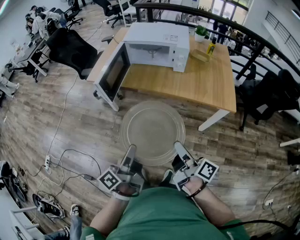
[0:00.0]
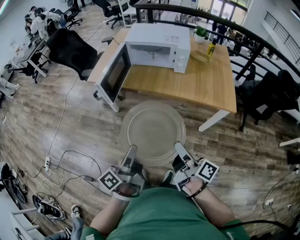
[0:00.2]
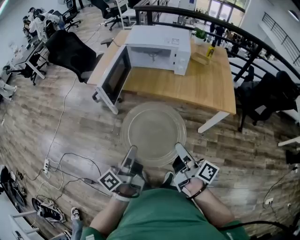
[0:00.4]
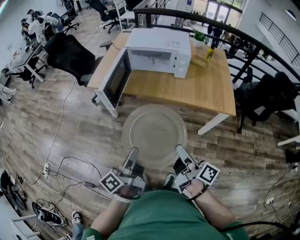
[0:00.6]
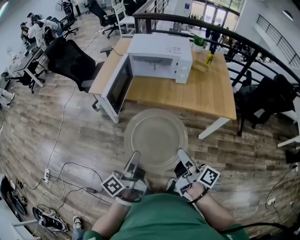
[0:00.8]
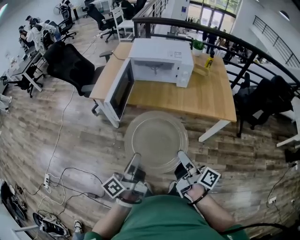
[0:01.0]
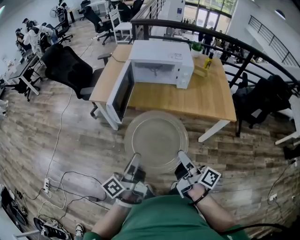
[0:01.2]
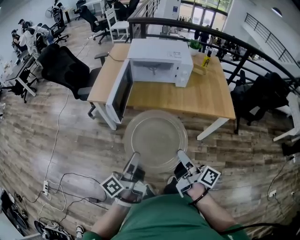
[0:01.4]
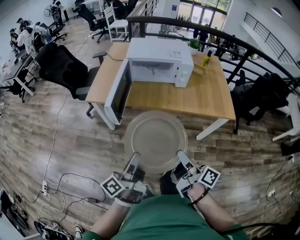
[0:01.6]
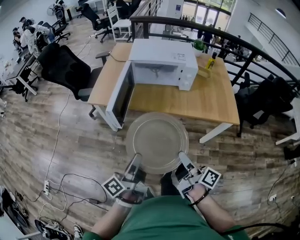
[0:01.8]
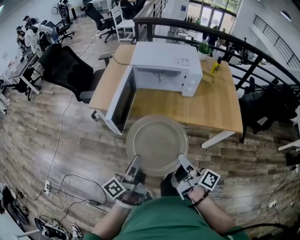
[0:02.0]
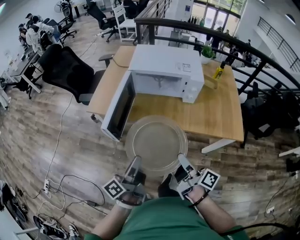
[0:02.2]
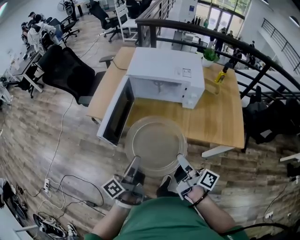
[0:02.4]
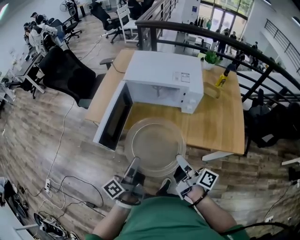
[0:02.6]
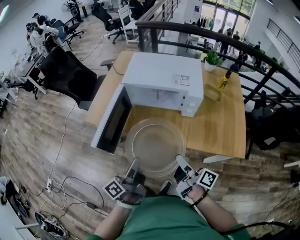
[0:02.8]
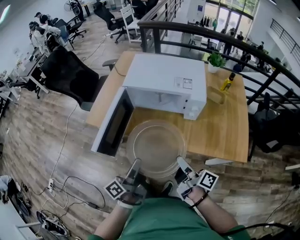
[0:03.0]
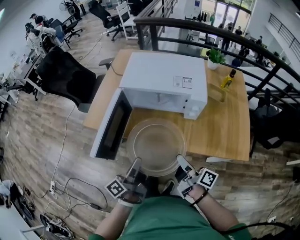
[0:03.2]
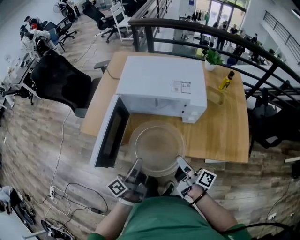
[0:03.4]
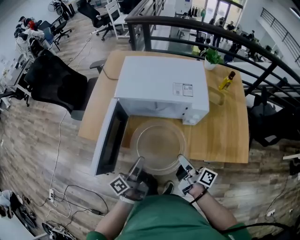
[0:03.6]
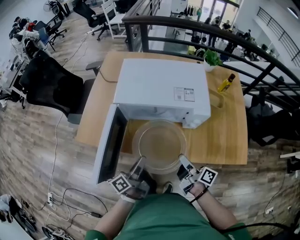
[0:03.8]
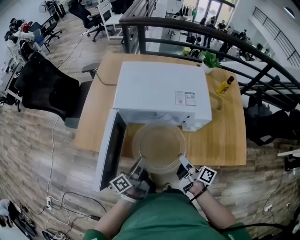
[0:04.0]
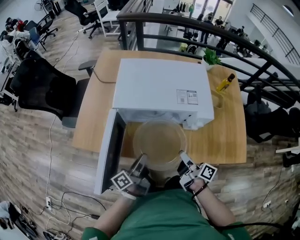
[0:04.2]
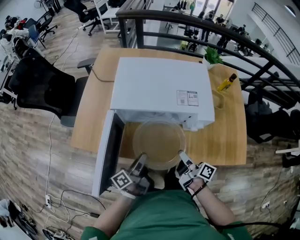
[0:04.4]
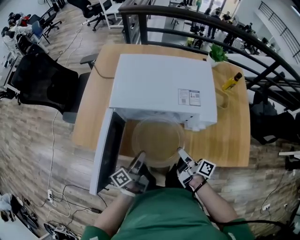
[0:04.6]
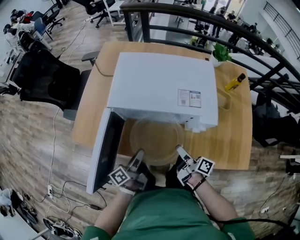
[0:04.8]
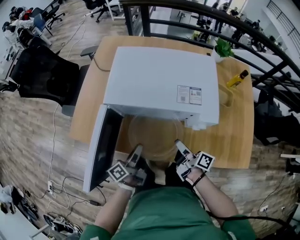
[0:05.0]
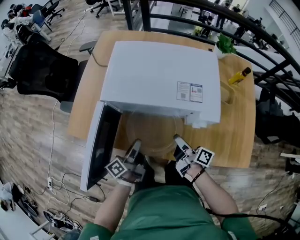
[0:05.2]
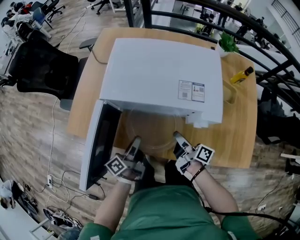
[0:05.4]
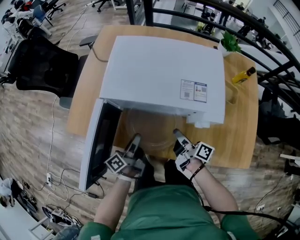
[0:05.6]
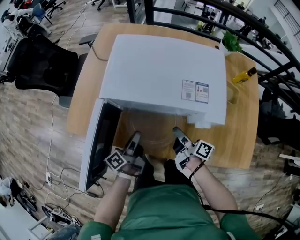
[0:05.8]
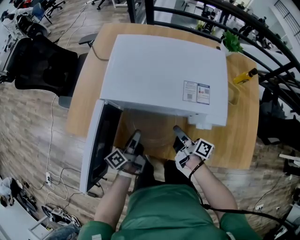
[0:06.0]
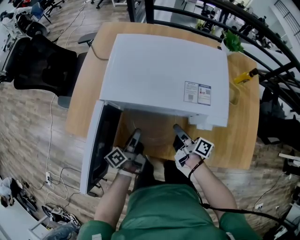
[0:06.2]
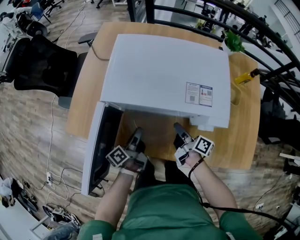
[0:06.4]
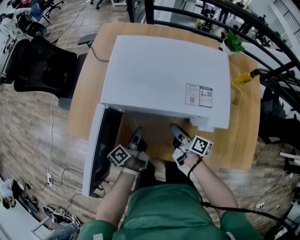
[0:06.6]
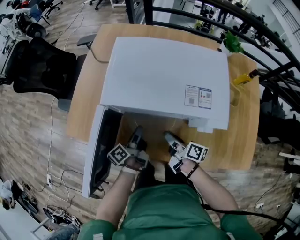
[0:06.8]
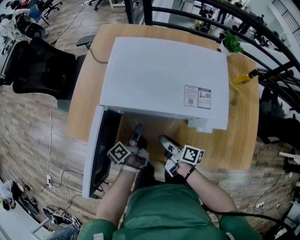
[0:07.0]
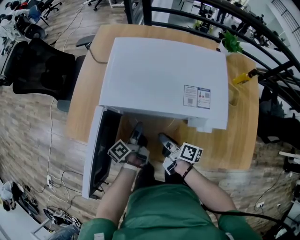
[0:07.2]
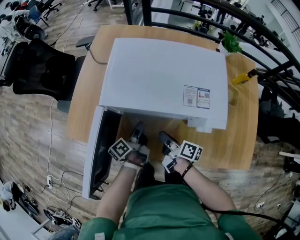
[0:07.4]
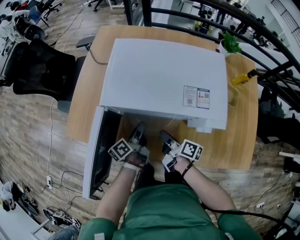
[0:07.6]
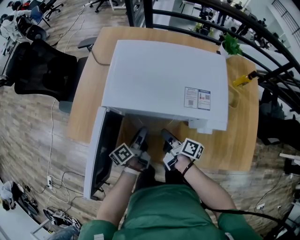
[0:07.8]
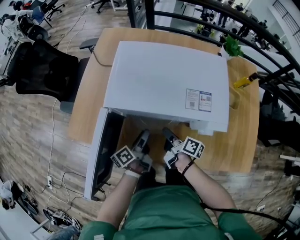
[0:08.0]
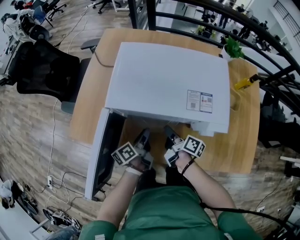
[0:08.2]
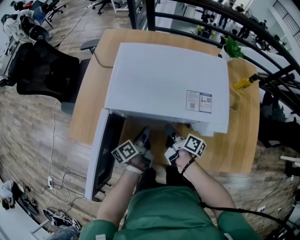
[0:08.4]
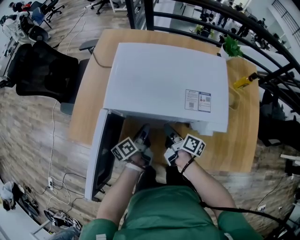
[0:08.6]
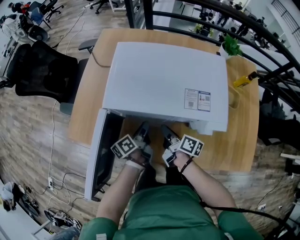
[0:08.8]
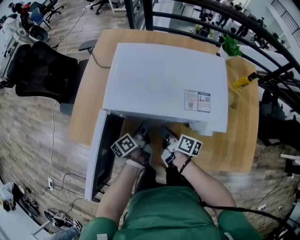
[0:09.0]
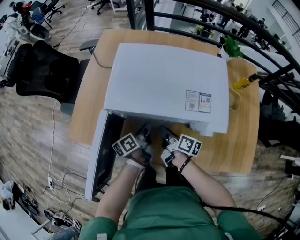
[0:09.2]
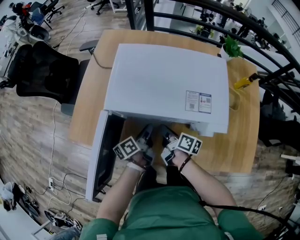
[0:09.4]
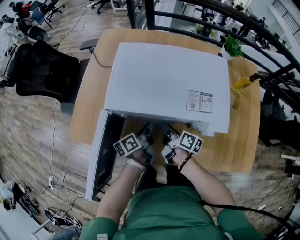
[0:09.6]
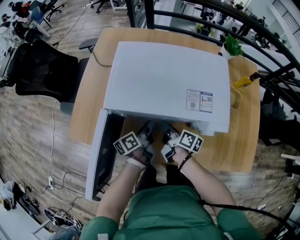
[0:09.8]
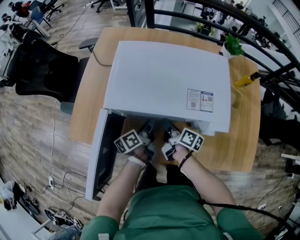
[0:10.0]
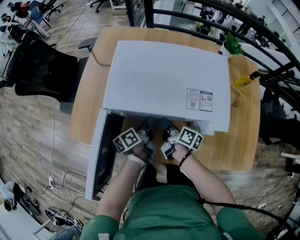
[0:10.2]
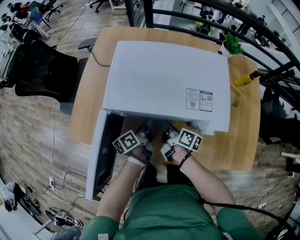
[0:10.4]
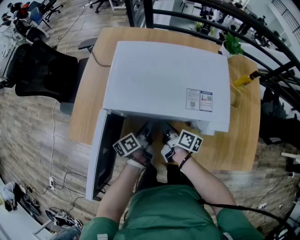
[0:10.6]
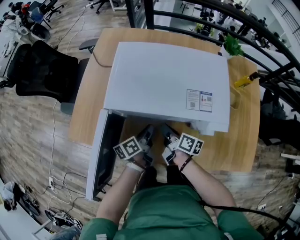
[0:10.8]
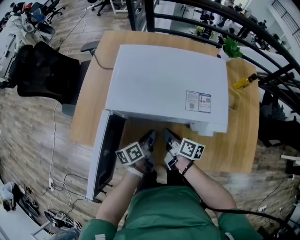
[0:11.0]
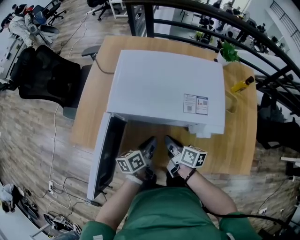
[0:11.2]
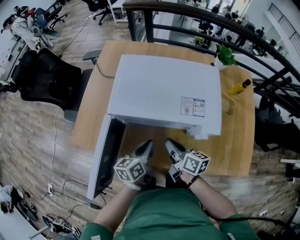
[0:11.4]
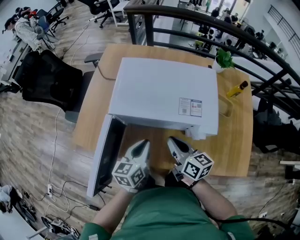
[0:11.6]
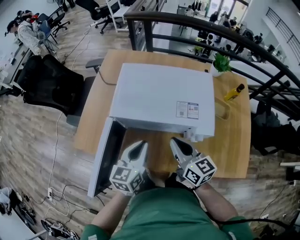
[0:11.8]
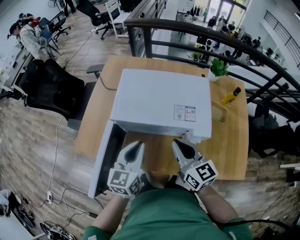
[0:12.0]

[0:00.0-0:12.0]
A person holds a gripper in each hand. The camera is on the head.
0:00.0 to 0:01.6: The right gripper shifts roughly 10 cm to the left. Meanwhile the left gripper travels to the left and forward by about 15 cm.
0:01.6 to 0:03.0: The right gripper goes roughly 25 cm forward. Meanwhile the left gripper travels forward and to the right by about 25 cm.
0:03.0 to 0:04.4: Both grippers move forward and downward, roughly 20 cm.
0:04.4 to 0:06.0: The two grippers go roughly 10 cm forward and downward.
0:06.0 to 0:07.6: The left gripper moves forward, some 5 cm, while the right gripper is displaced to the left by some 5 cm, and opens, then closes once more.
0:07.6 to 0:09.0: The grippers move only a little.
0:09.0 to 0:10.4: The grippers stay close to where they were, moving slightly.
0:10.4 to 0:12.0: Both grippers travel together upward, approximately 25 cm. The right gripper rotates around the line of its fingers by roughly 60 degrees, counterclockwise from behind. Meanwhile the left gripper rolls clockwise, seen from behind, by about 60 degrees.

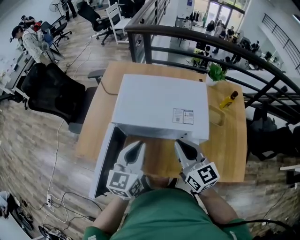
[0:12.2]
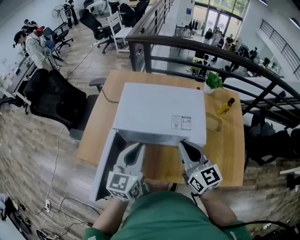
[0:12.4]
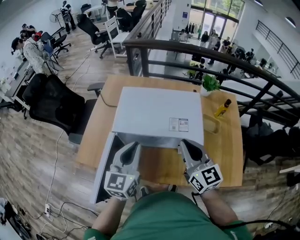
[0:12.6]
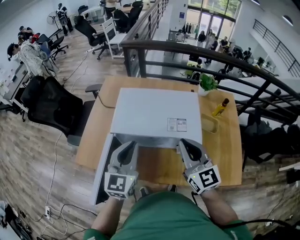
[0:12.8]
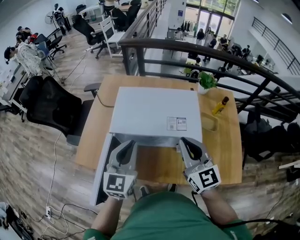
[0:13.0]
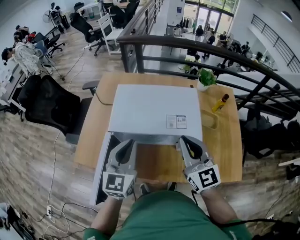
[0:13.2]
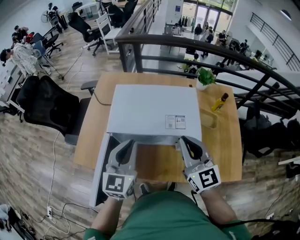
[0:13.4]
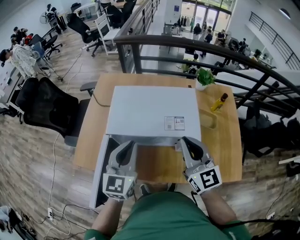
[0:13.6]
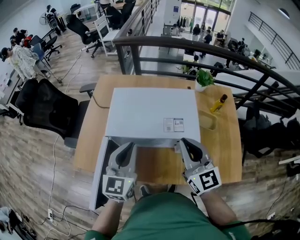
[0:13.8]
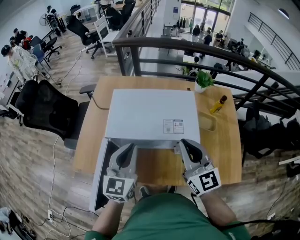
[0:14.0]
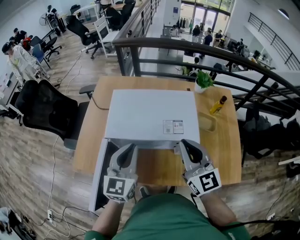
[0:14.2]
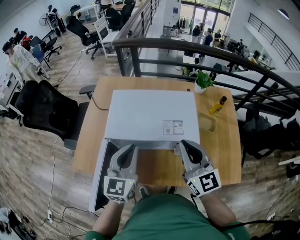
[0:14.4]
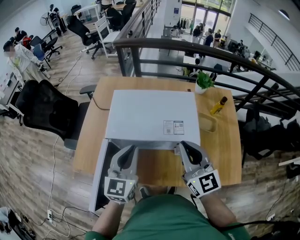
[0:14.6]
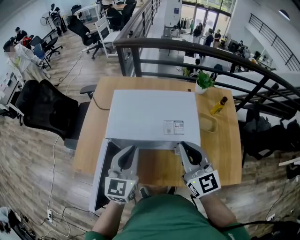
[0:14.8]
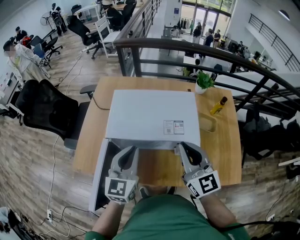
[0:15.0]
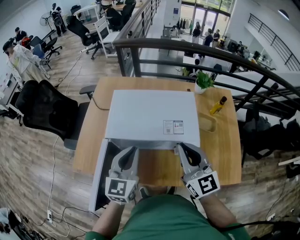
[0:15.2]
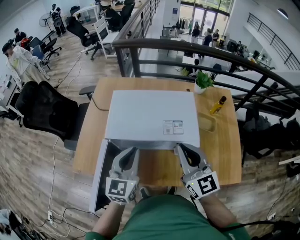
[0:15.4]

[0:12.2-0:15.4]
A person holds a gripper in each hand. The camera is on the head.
0:12.2 to 0:13.8: The right gripper goes roughly 5 cm upward.
0:13.8 to 0:15.4: There are only small adjustments of the grippers.

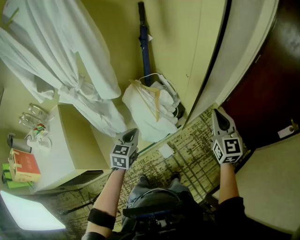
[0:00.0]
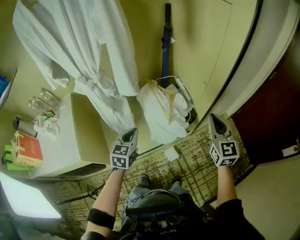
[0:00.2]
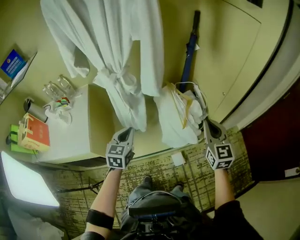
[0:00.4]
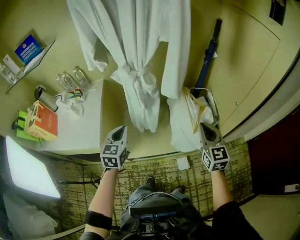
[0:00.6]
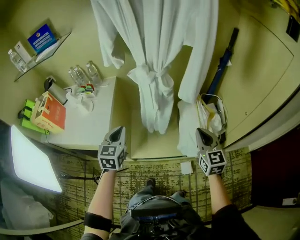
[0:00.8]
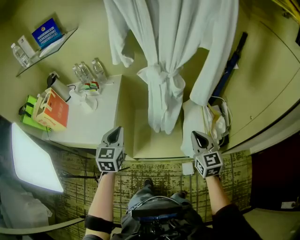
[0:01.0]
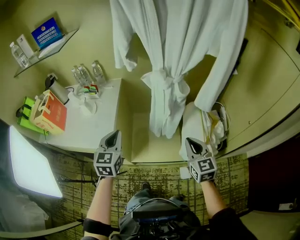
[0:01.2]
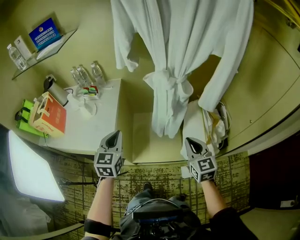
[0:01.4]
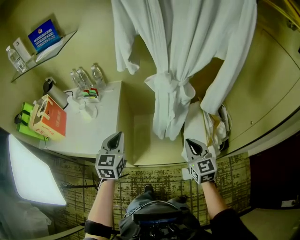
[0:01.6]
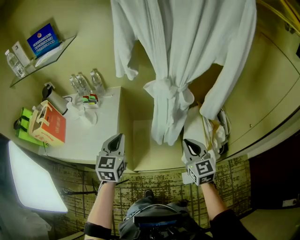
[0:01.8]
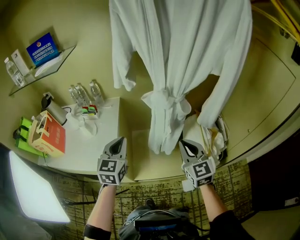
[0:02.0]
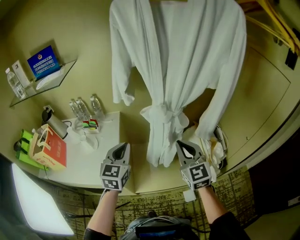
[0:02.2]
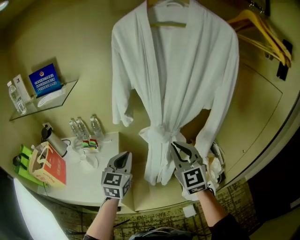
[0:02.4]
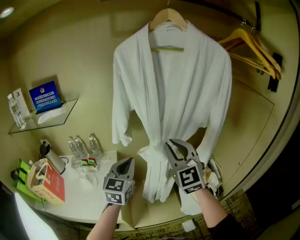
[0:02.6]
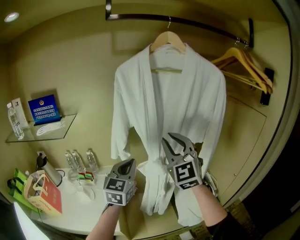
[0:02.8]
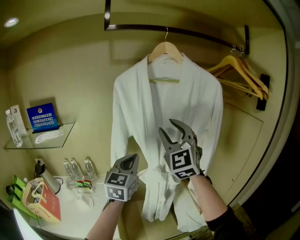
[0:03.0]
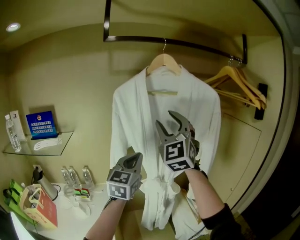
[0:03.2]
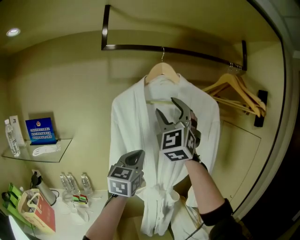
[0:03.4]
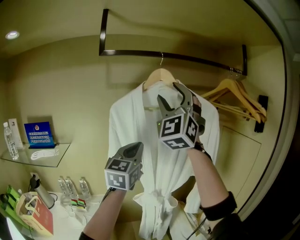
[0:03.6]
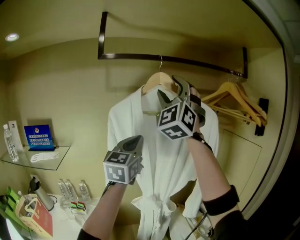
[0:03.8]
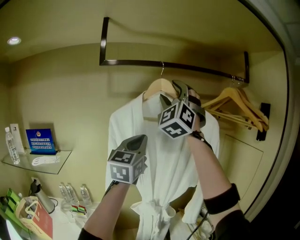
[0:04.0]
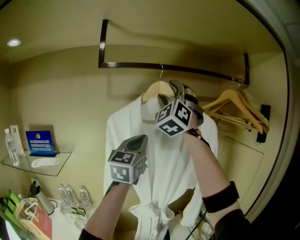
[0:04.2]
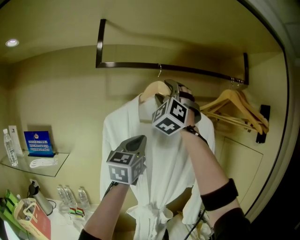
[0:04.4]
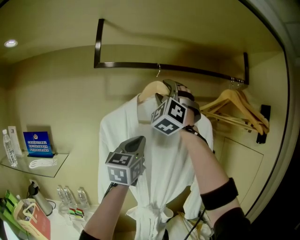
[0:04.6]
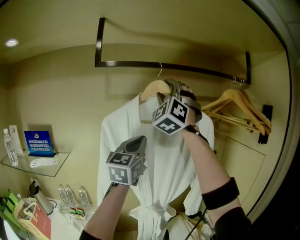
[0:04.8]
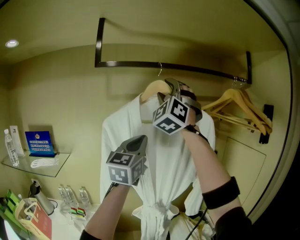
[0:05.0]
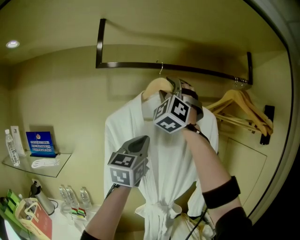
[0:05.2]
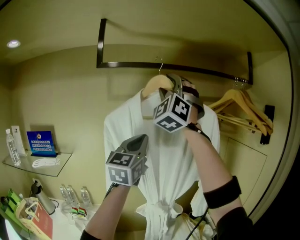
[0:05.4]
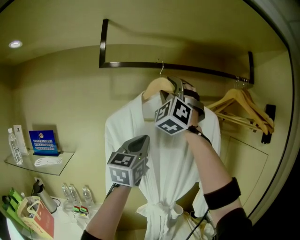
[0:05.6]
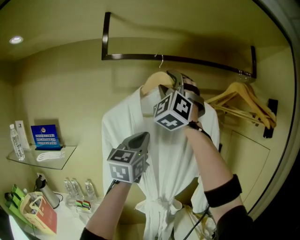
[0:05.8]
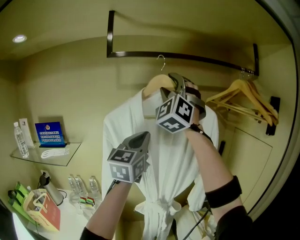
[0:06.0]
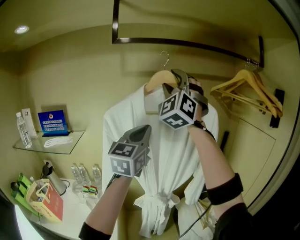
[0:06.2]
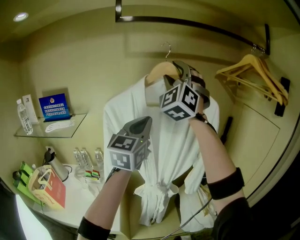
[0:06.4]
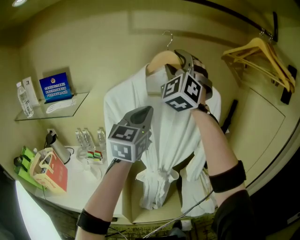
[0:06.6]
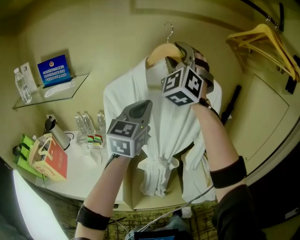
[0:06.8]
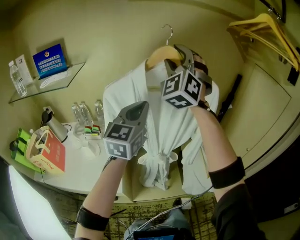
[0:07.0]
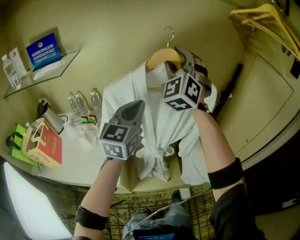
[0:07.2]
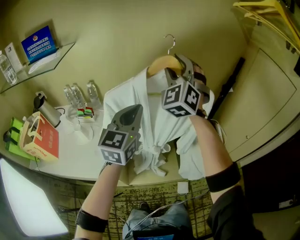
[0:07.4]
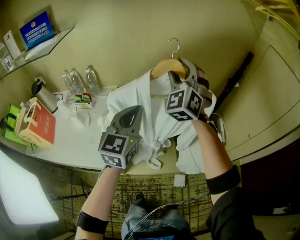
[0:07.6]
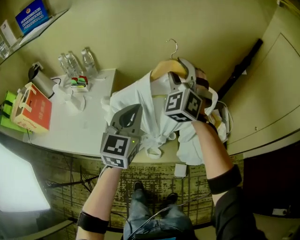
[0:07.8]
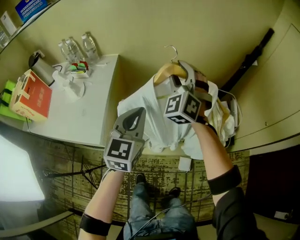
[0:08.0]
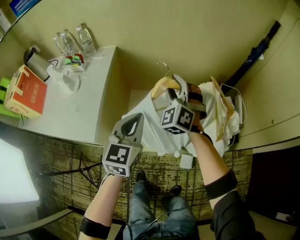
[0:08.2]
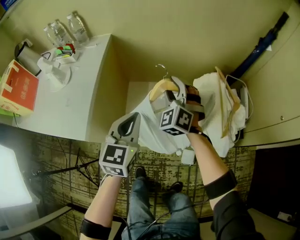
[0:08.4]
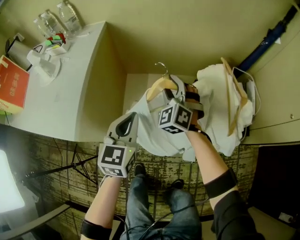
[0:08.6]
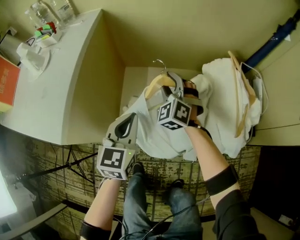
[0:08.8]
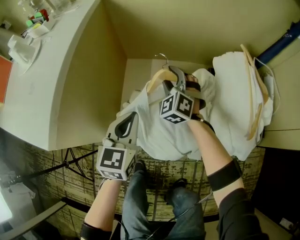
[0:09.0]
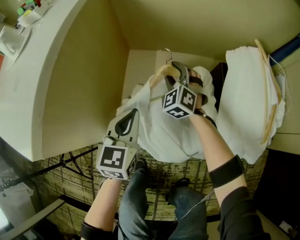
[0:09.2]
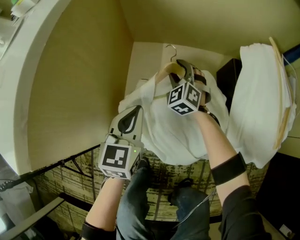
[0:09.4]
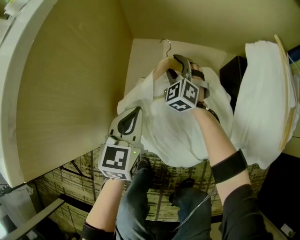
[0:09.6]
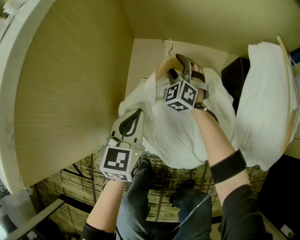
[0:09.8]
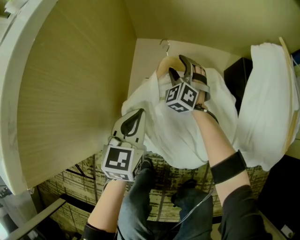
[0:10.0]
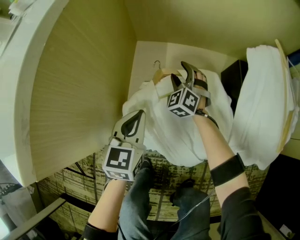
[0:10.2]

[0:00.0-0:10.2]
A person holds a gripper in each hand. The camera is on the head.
0:00.0 to 0:01.4: The left gripper moves about 40 cm, and rotates roughly 40 degrees, while the right gripper moves roughly 40 cm, and rotates some 40 degrees.
0:01.4 to 0:03.0: The grippers both shift upward and forward by about 40 cm. The right gripper angles its fingers upward, by roughly 30 degrees, and opens up. The left gripper turns by roughly 30 degrees.
0:03.0 to 0:04.4: Both grippers travel together upward and forward, approximately 25 cm. The right gripper turns by about 30 degrees.
0:04.4 to 0:05.8: The grippers stay close to where they were, moving slightly.
0:05.8 to 0:07.2: Both grippers move downward, roughly 30 cm. The right gripper rotates approximately 20 degrees.
0:07.2 to 0:08.8: The two grippers go about 60 cm downward. The right gripper angles its fingers downward, by approximately 40 degrees, while the left gripper changes its angle by approximately 30 degrees.
0:08.8 to 0:10.2: Both grippers move downward, roughly 25 cm.
